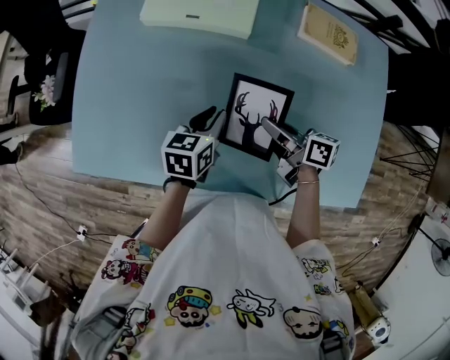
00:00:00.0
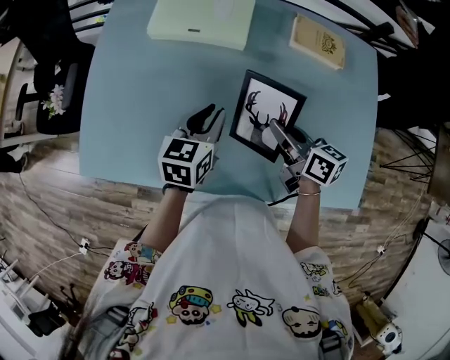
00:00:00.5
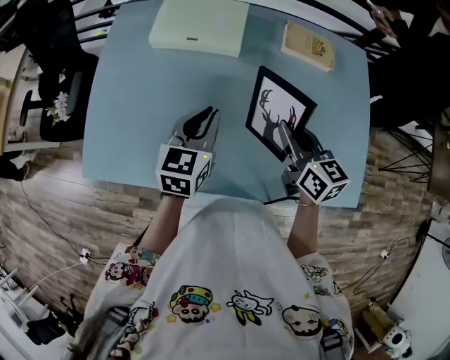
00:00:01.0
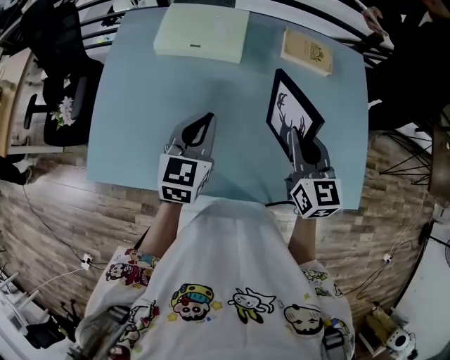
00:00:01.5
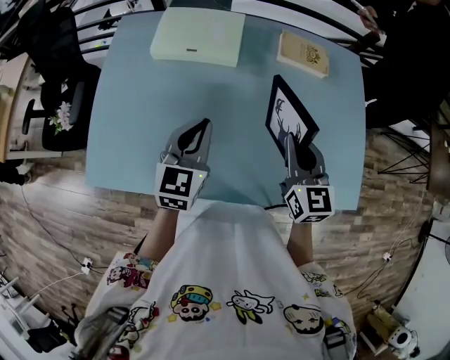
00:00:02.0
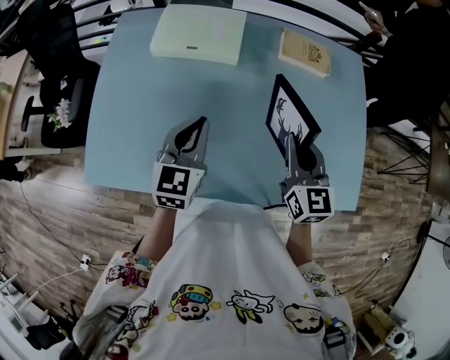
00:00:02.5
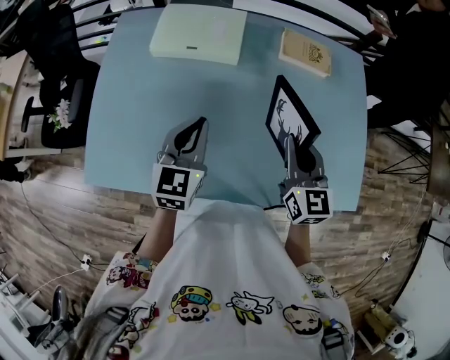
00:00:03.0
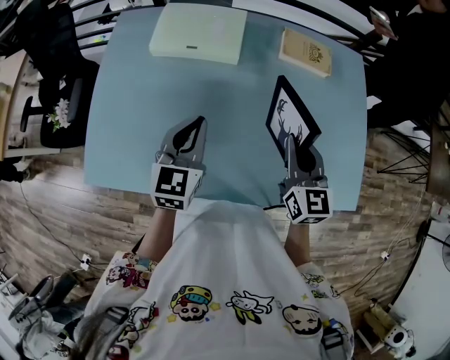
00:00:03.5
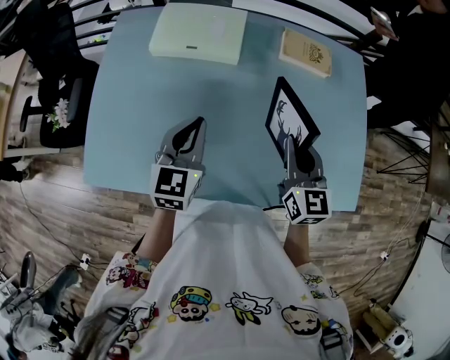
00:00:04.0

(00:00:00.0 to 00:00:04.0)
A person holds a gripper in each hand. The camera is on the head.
00:00:00.0 - 00:00:02.0: The two grippers go approximately 15 cm upward. The left gripper turns by approximately 30 degrees, and closes; the right gripper rotates roughly 70 degrees.
00:00:02.0 - 00:00:04.0: The grippers make only small movements.

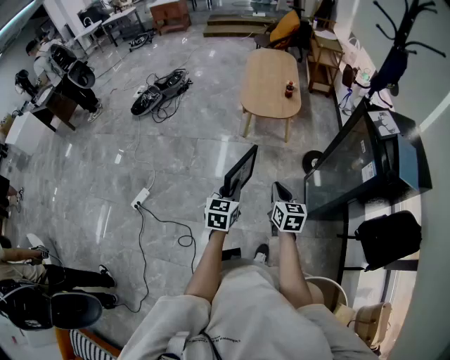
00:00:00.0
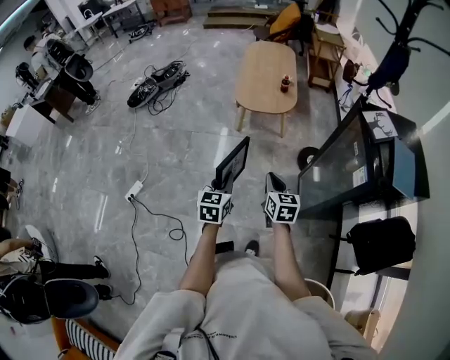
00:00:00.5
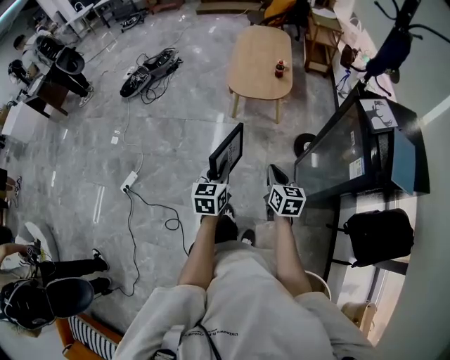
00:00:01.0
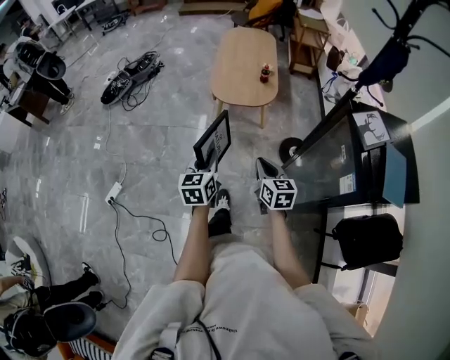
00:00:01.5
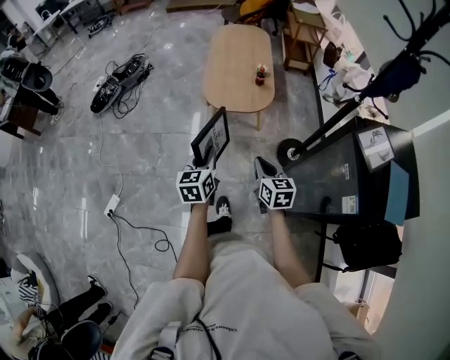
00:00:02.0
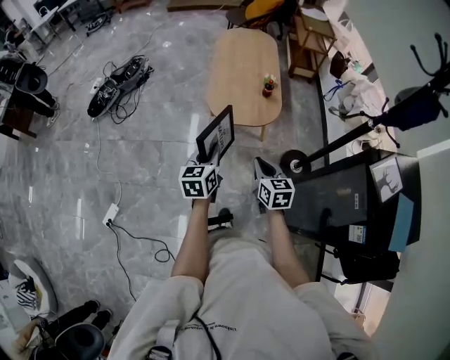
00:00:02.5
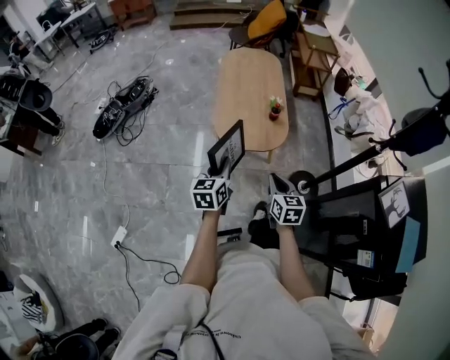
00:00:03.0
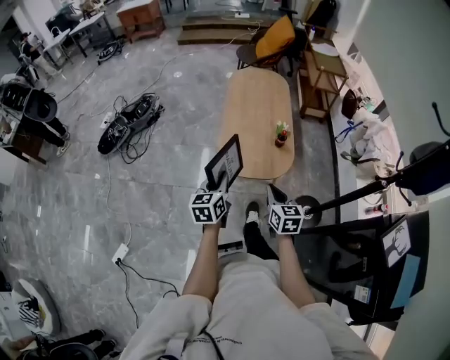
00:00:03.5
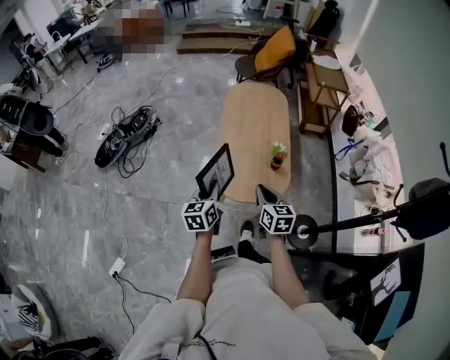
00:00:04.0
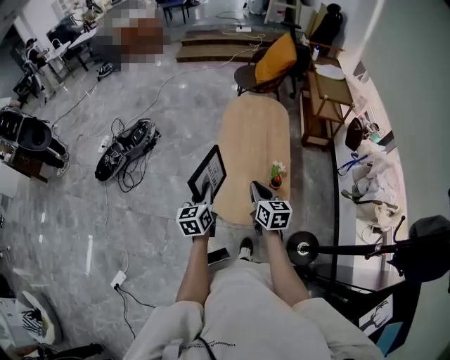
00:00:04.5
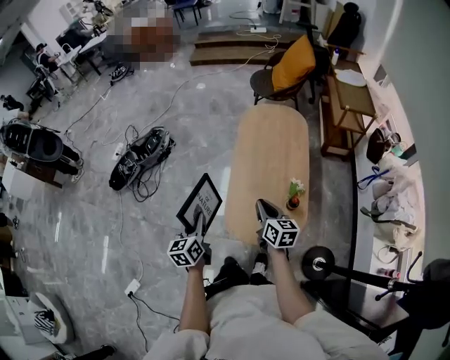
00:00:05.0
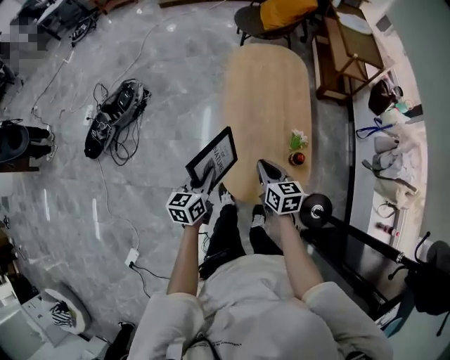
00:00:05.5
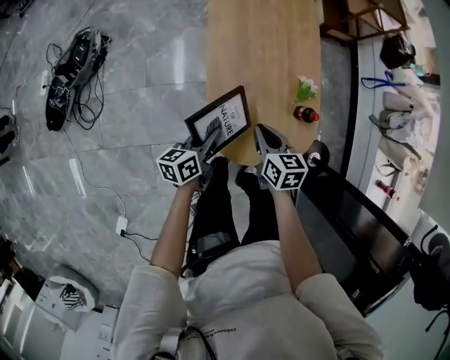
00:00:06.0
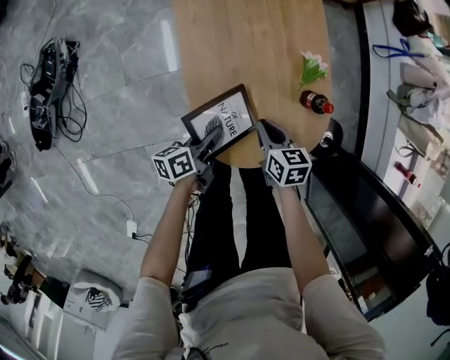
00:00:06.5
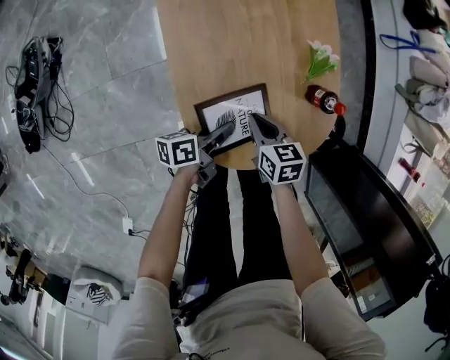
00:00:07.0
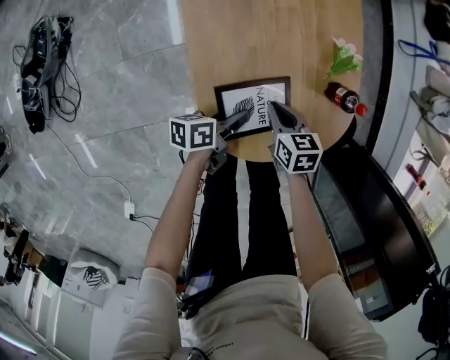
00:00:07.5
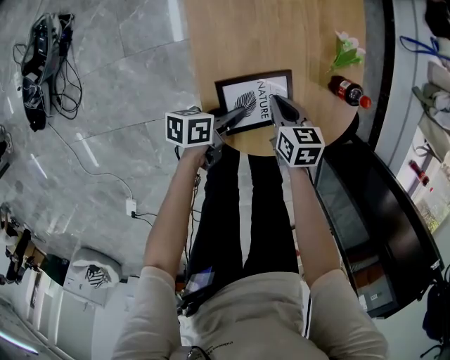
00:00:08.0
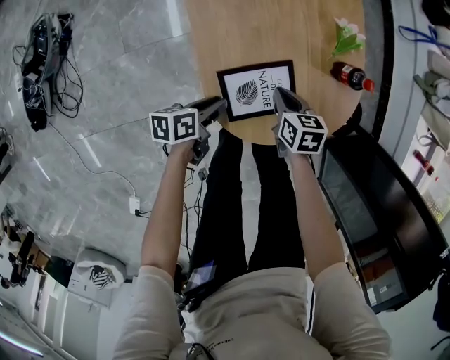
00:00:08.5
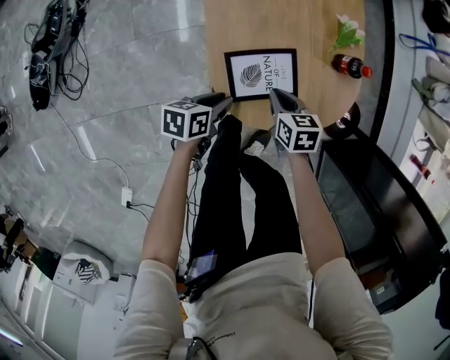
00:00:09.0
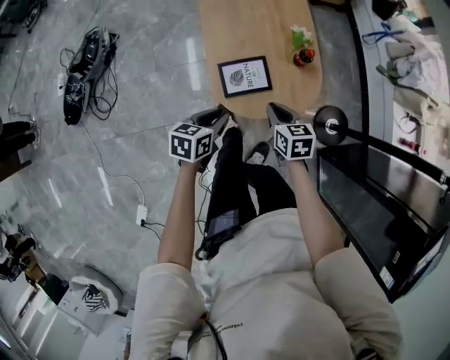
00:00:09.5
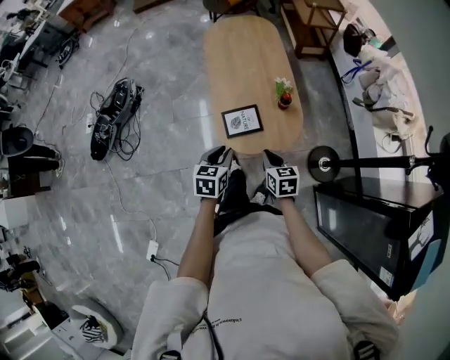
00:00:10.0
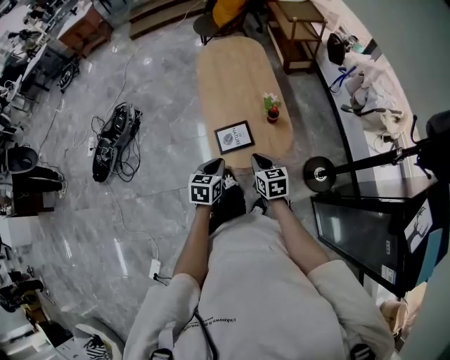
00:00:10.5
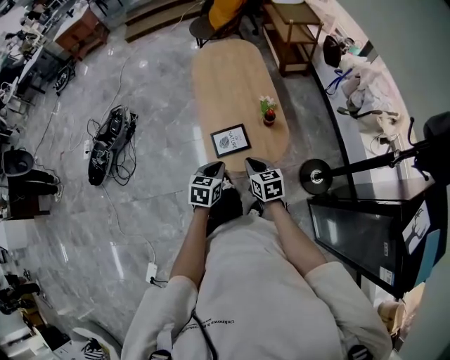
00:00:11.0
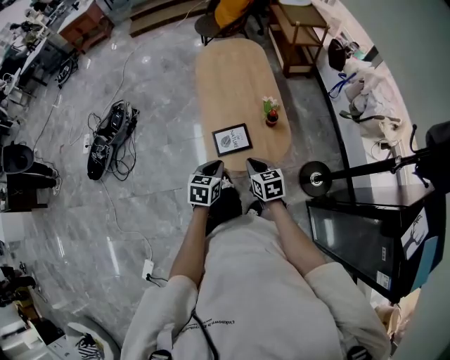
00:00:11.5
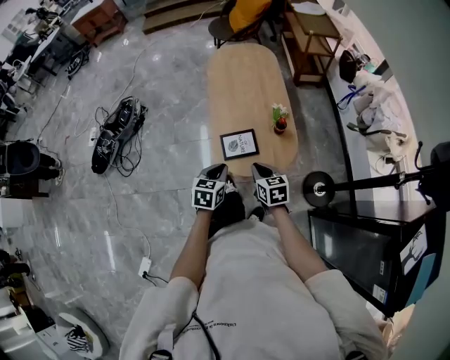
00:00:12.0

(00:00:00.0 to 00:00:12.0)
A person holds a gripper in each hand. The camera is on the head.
00:00:00.0 - 00:00:02.0: The two grippers go roughly 30 cm forward.
00:00:02.0 - 00:00:04.0: The two grippers travel together, forward, approximately 50 cm.
00:00:04.0 - 00:00:06.0: The right gripper changes place by about 50 cm, and changes its angle by about 20 degrees. The left gripper moves about 50 cm, and rotates roughly 40 degrees.
00:00:06.0 - 00:00:08.0: Both grippers move downward, approximately 25 cm. The left gripper rotates some 30 degrees.
00:00:08.0 - 00:00:10.0: The two grippers go approximately 50 cm upward and backward. The left gripper swivels some 60 degrees.
00:00:10.0 - 00:00:12.0: There are only small adjustments of the grippers.

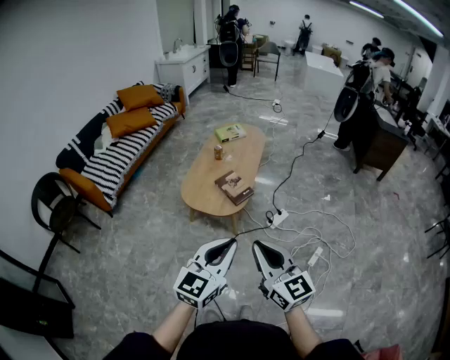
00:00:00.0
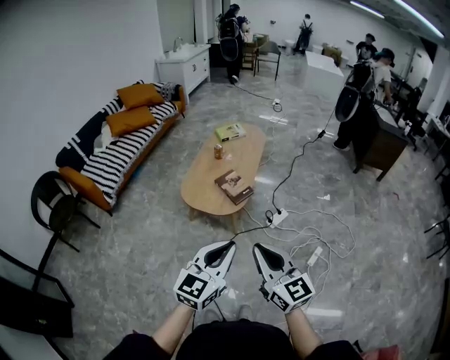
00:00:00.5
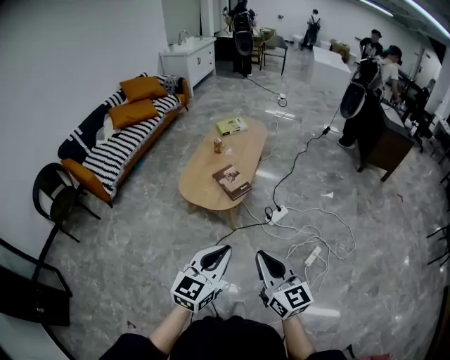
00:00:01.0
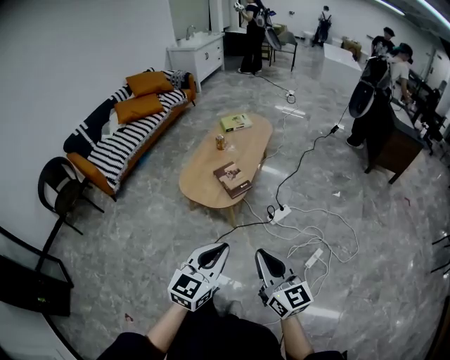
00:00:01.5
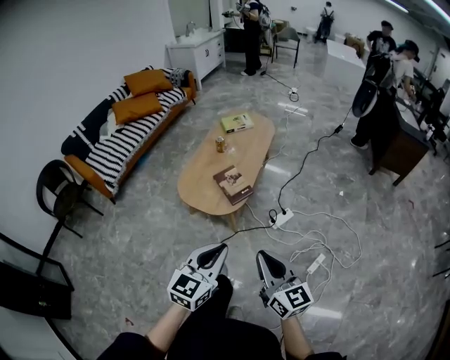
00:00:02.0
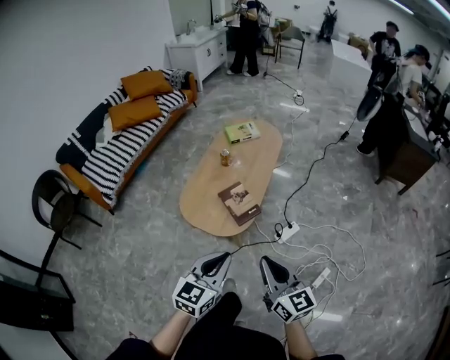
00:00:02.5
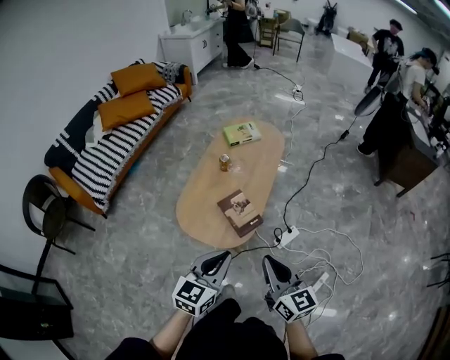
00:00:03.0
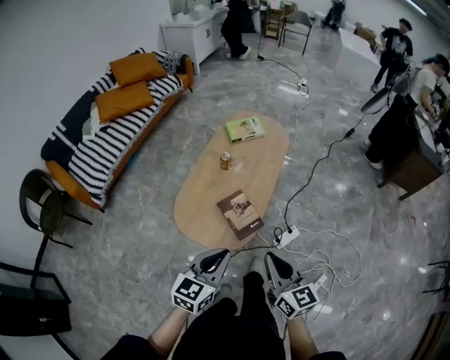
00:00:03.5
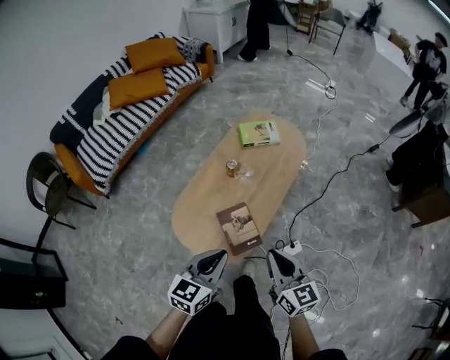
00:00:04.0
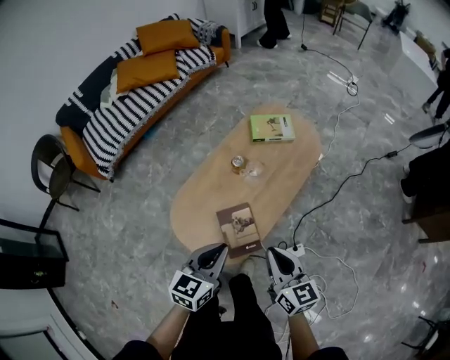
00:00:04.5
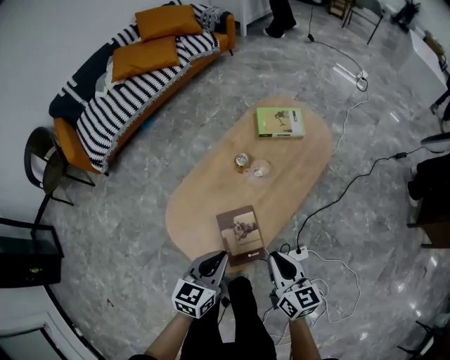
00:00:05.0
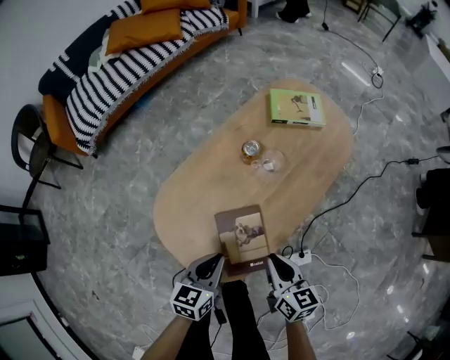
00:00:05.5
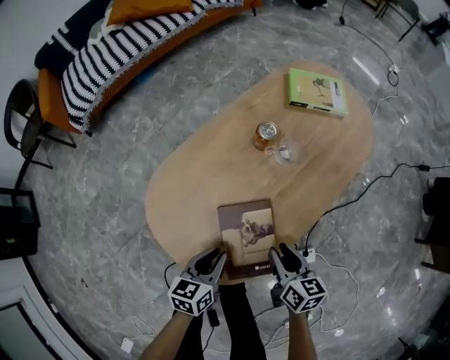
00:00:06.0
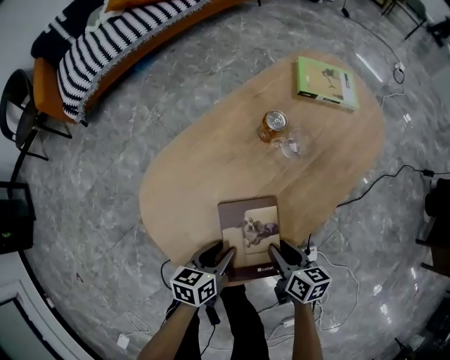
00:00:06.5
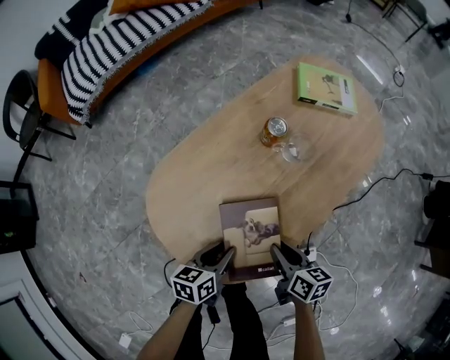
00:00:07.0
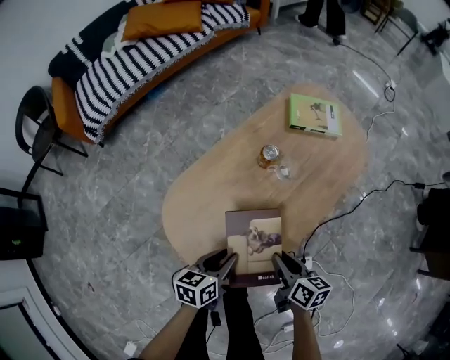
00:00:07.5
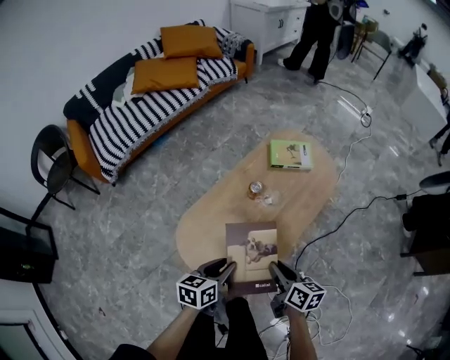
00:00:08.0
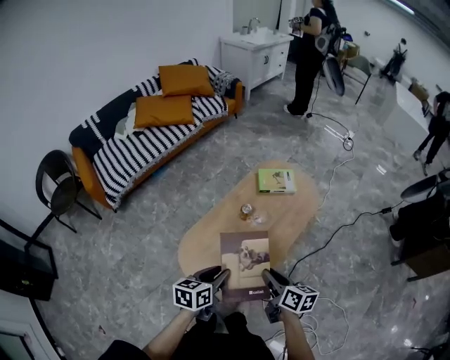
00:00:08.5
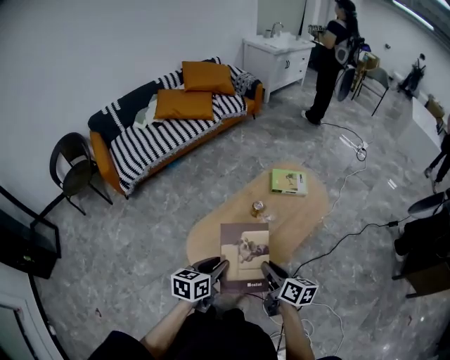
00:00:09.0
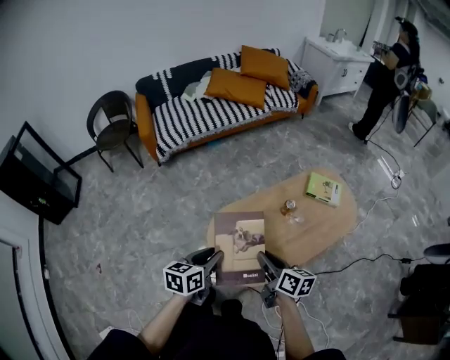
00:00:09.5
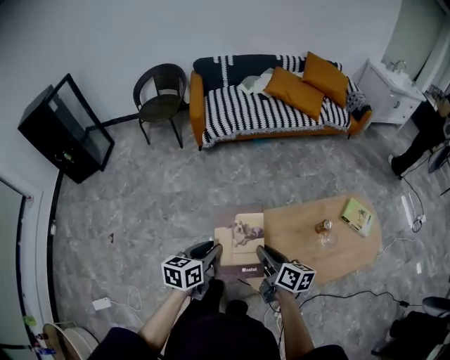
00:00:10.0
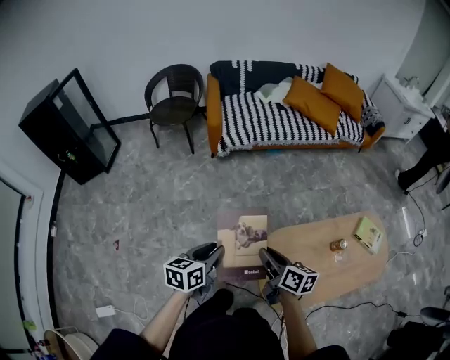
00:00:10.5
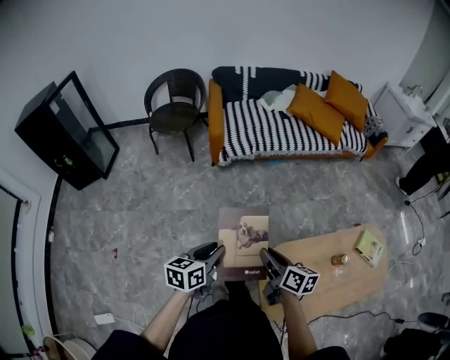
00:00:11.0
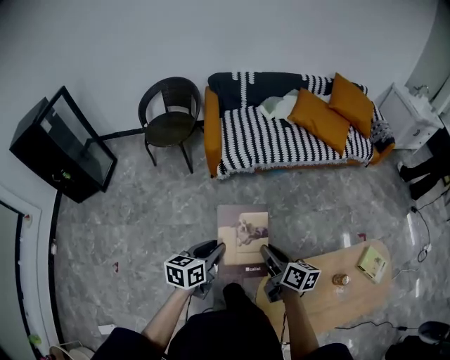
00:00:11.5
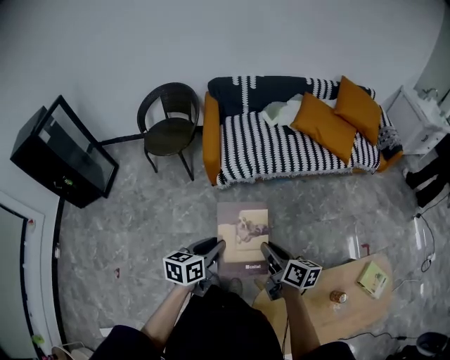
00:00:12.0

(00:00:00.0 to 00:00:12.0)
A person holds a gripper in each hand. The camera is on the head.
00:00:00.0 - 00:00:02.0: The left gripper heads forward, downward and to the right, covering approximately 15 cm. The right gripper shifts some 15 cm to the right, forward and downward.
00:00:02.0 - 00:00:04.0: Both grippers are carried forward, some 50 cm.
00:00:04.0 - 00:00:06.0: Both grippers travel together downward, roughly 40 cm. The left gripper changes its angle by roughly 30 degrees. The right gripper swivels roughly 30 degrees, and opens up.
00:00:06.0 - 00:00:08.0: Both grippers move upward, approximately 25 cm.
00:00:08.0 - 00:00:10.0: The left gripper shifts by roughly 30 cm, and turns by some 40 degrees. The right gripper shifts by roughly 30 cm, and turns by about 40 degrees.
00:00:10.0 - 00:00:12.0: Both grippers are carried forward, approximately 40 cm.
